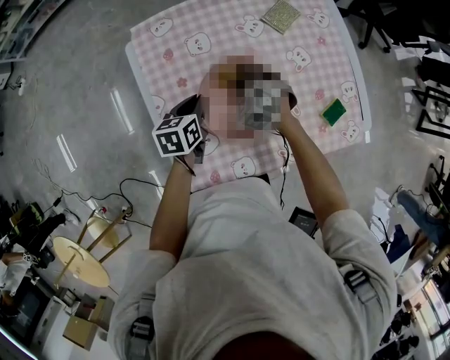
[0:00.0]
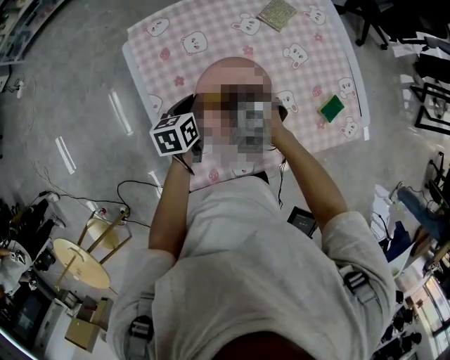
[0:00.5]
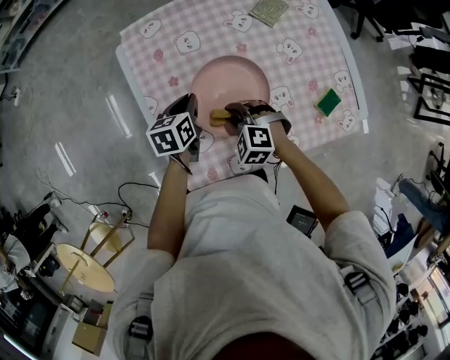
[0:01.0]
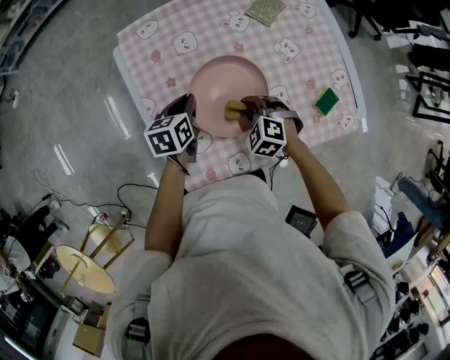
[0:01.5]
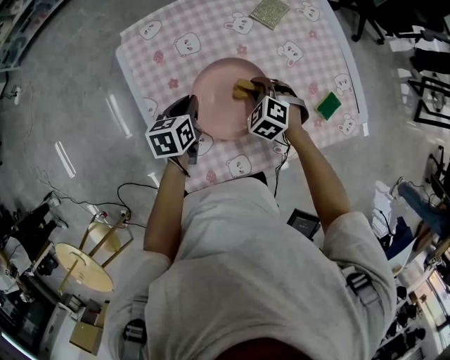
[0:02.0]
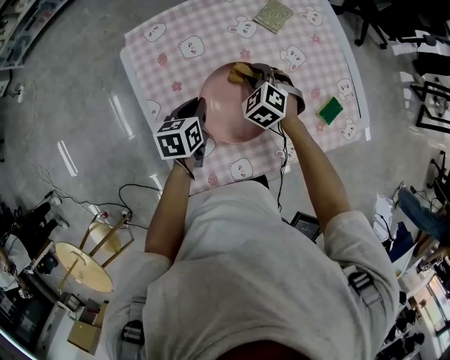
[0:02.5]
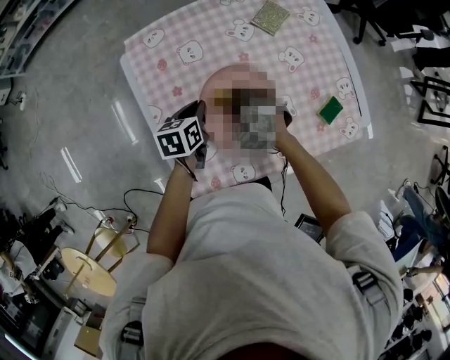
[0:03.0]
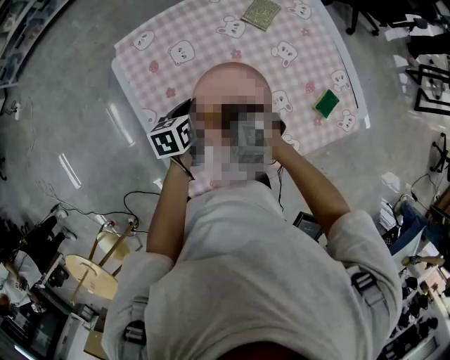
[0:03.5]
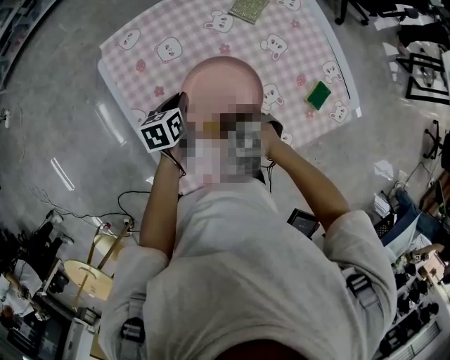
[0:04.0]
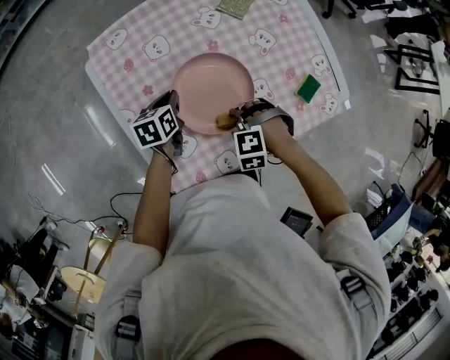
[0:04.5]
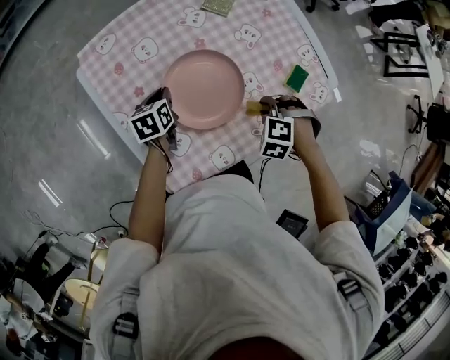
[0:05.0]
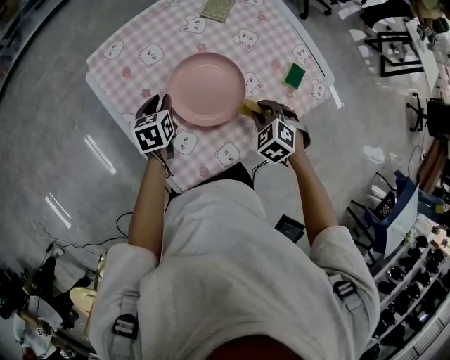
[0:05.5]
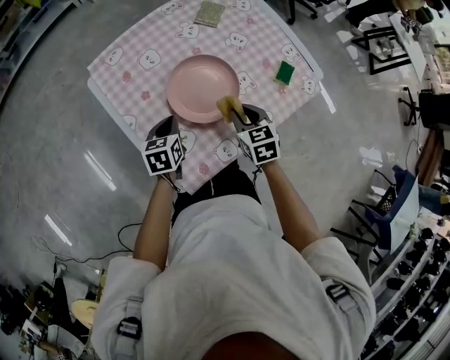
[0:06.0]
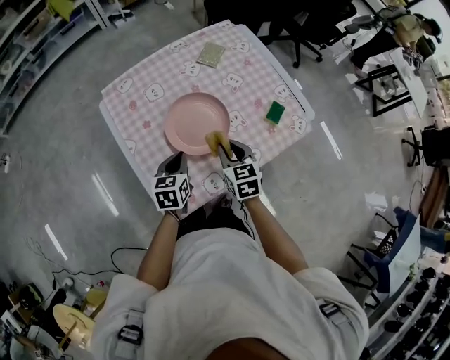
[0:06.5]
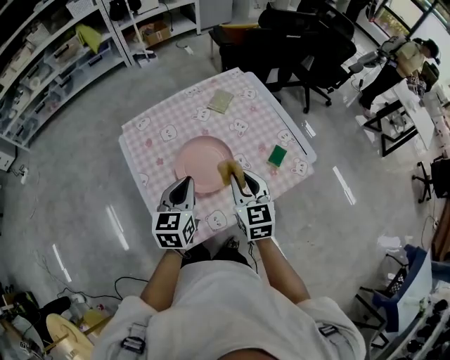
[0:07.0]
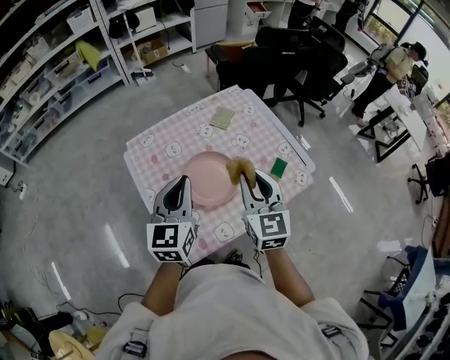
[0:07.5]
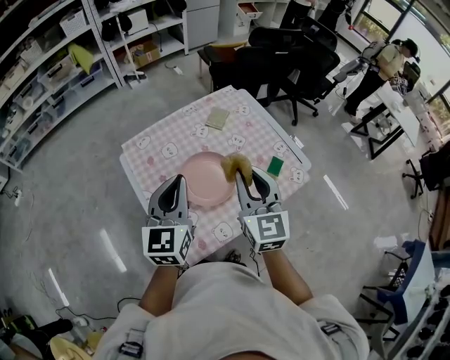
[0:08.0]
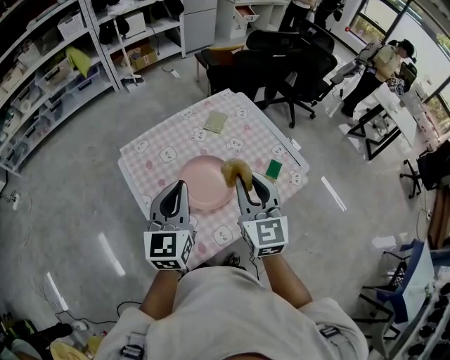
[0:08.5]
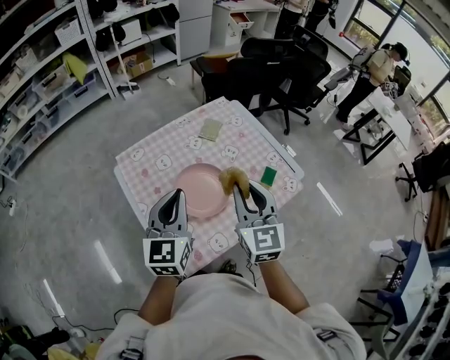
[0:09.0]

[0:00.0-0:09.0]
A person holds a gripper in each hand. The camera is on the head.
0:00.0 to 0:02.0: The right gripper shifts roughly 10 cm to the right and backward.
0:02.0 to 0:04.5: The left gripper ends up some 5 cm from where it was. Meanwhile the right gripper ends up about 10 cm from where it was, and turns by roughly 40 degrees.
0:04.5 to 0:07.0: The grippers both shift upward by some 25 cm. The right gripper tilts its fingers about 60 degrees upward. The left gripper swivels some 40 degrees, and opens, then closes once more.
0:07.0 to 0:09.0: Both grippers move upward, approximately 15 cm.

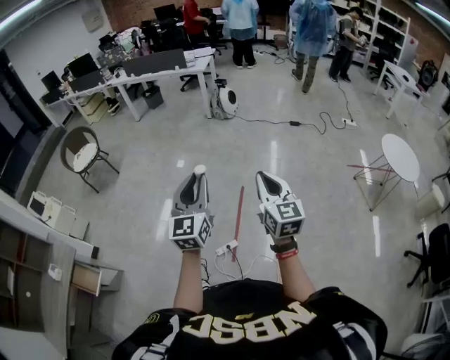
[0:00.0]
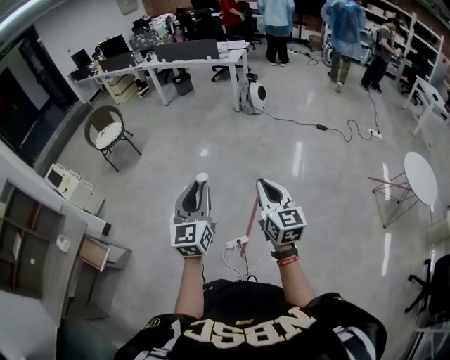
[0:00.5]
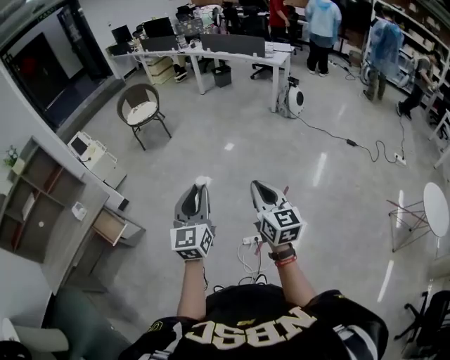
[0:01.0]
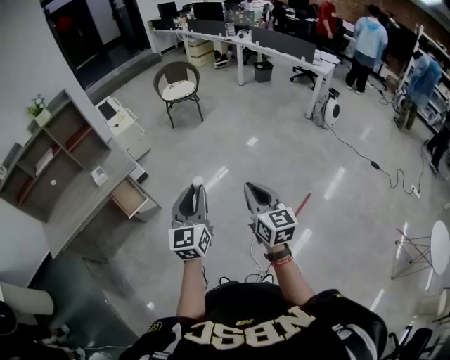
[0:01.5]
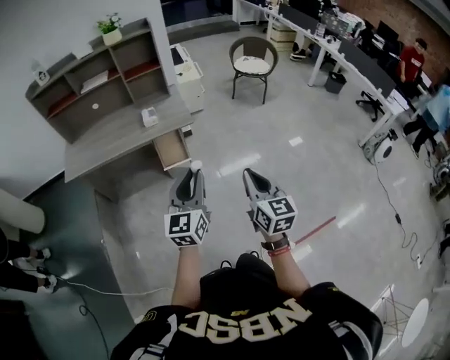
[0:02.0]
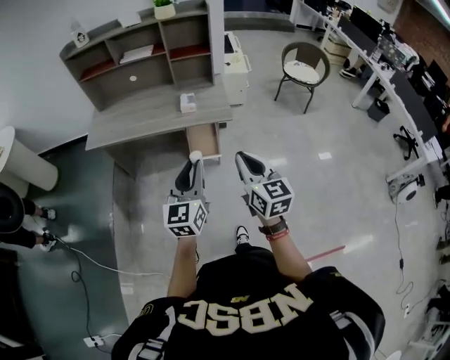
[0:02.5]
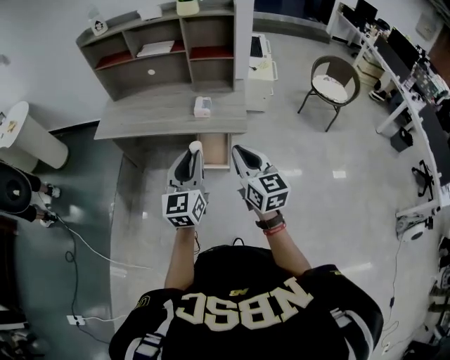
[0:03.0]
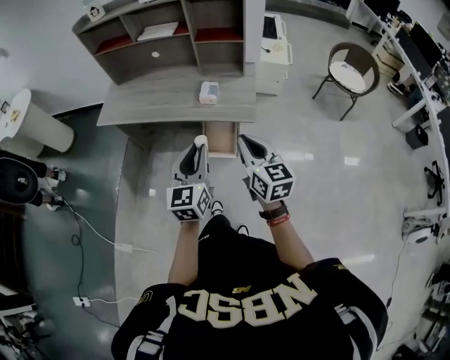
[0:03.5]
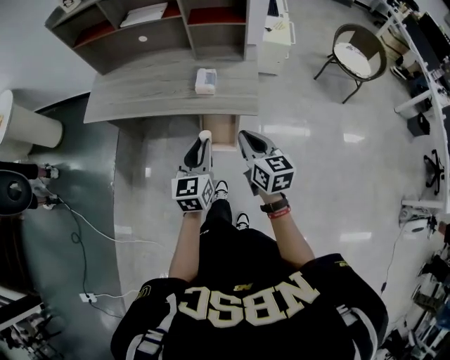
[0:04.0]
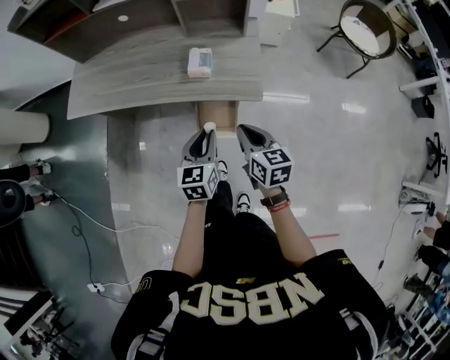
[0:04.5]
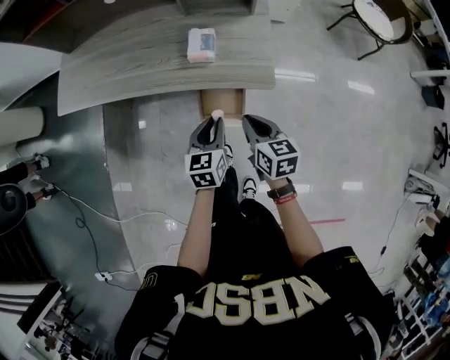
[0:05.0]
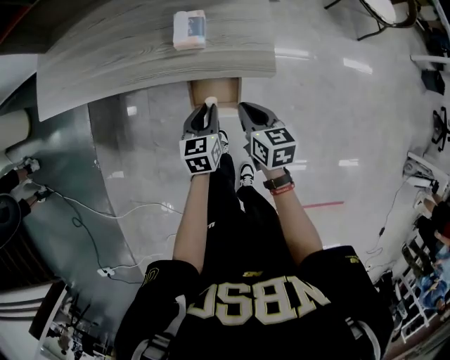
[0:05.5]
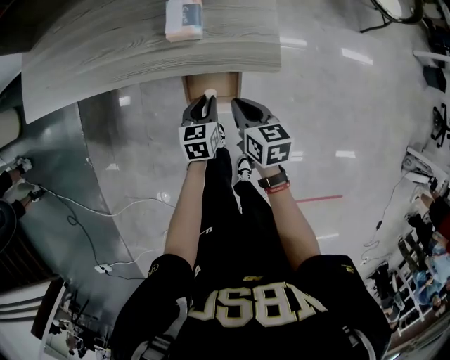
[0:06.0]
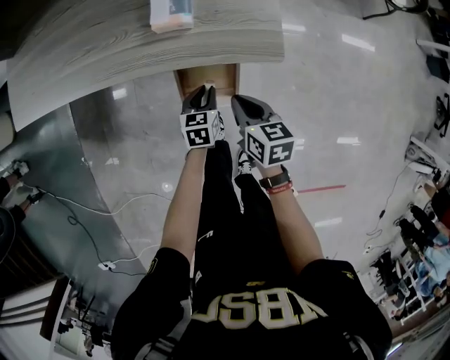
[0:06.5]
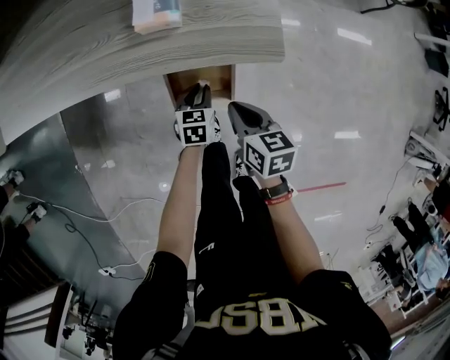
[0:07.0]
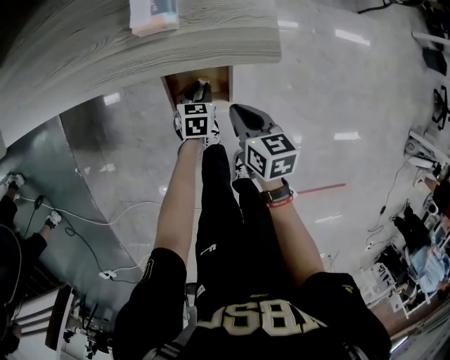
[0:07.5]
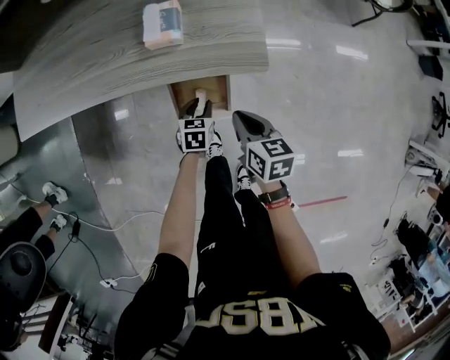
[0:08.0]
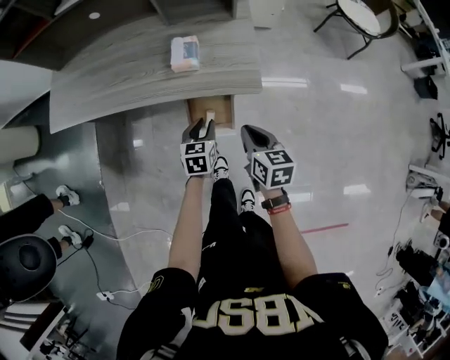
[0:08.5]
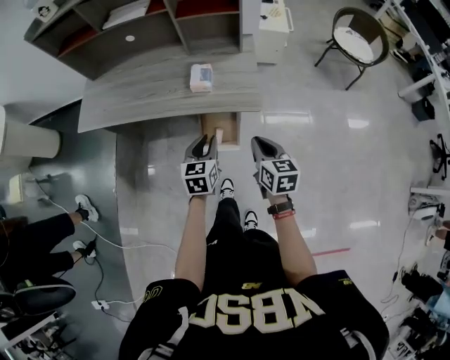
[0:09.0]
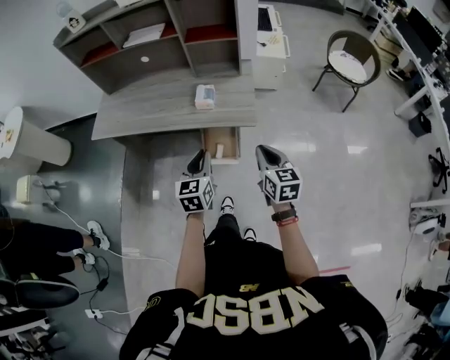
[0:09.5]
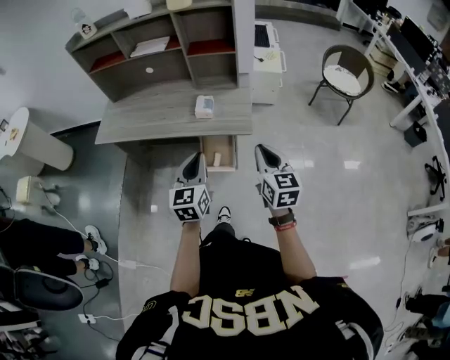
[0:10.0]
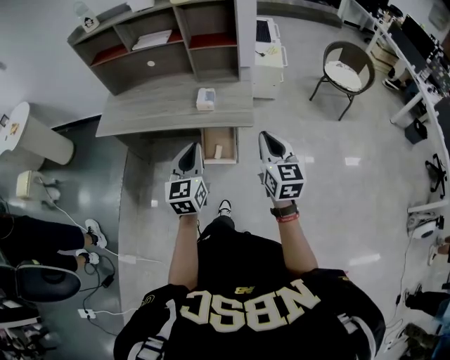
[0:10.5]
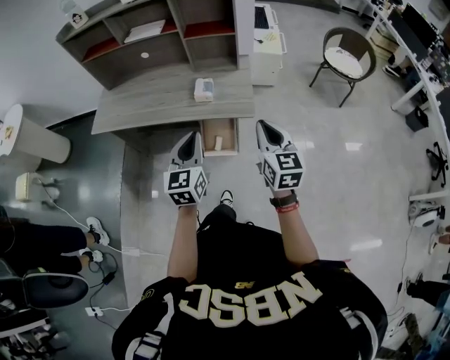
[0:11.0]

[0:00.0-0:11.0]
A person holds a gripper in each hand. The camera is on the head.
0:00.0 to 0:02.0: Both grippers are carried approximately 60 cm. The left gripper swivels some 60 degrees. Meanwhile the right gripper changes its angle by some 60 degrees.
0:02.0 to 0:03.5: The right gripper changes place by about 30 cm, and swivels about 30 degrees; the left gripper shifts by some 25 cm, and changes its angle by about 30 degrees.
0:03.5 to 0:05.5: The two grippers go approximately 35 cm downward and forward. The right gripper swivels approximately 30 degrees, while the left gripper angles its fingers downward, by about 30 degrees.
0:05.5 to 0:07.5: The left gripper heads downward, covering about 20 cm, and changes its angle by about 20 degrees; the right gripper heads downward, covering some 10 cm.
0:07.5 to 0:09.0: The left gripper moves upward, about 35 cm, and swivels roughly 30 degrees; the right gripper is displaced upward by roughly 20 cm.
0:09.0 to 0:11.0: Both grippers move upward, roughly 20 cm. The left gripper changes its angle by roughly 20 degrees, and closes its fingers. Meanwhile the right gripper turns by some 20 degrees.

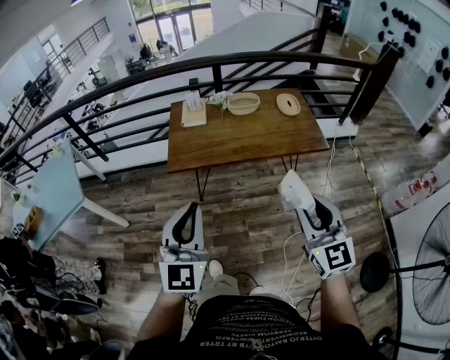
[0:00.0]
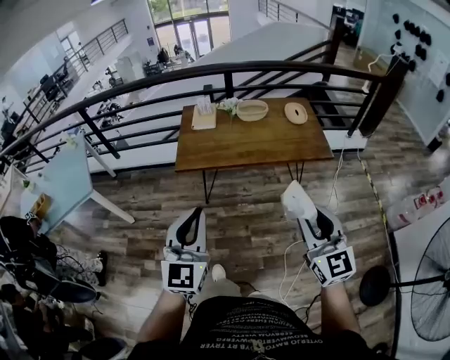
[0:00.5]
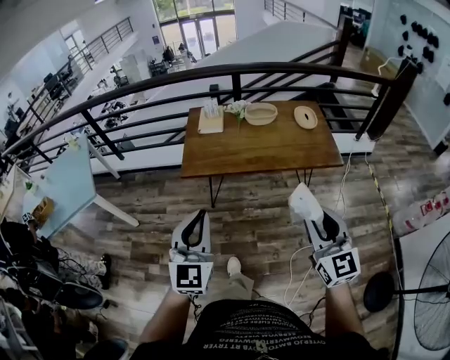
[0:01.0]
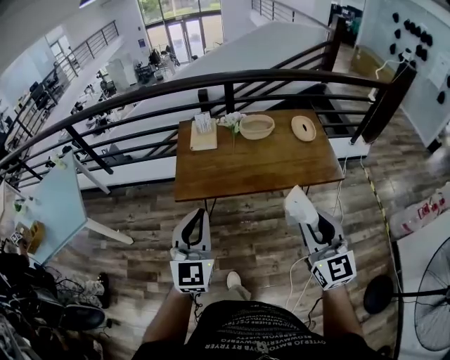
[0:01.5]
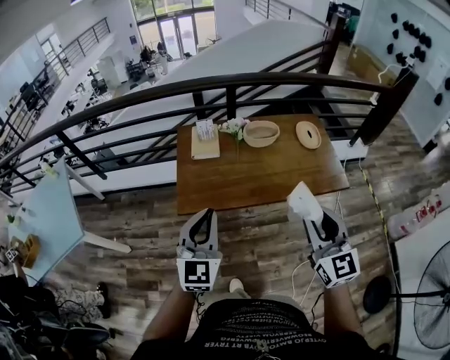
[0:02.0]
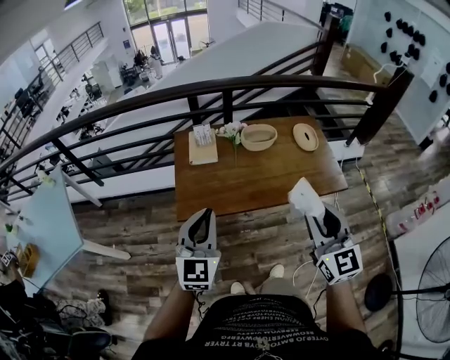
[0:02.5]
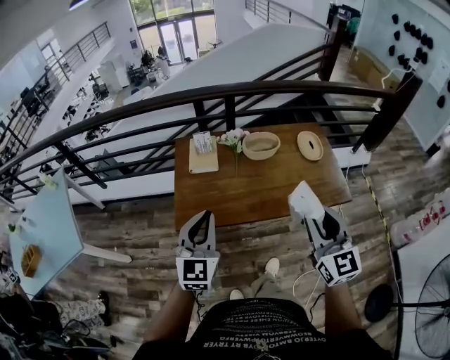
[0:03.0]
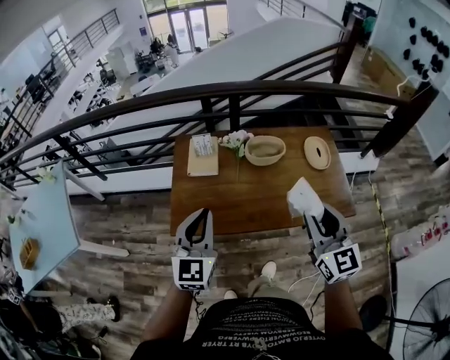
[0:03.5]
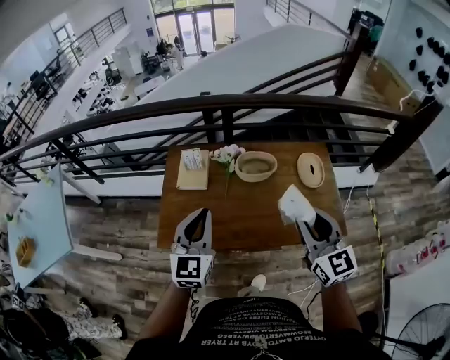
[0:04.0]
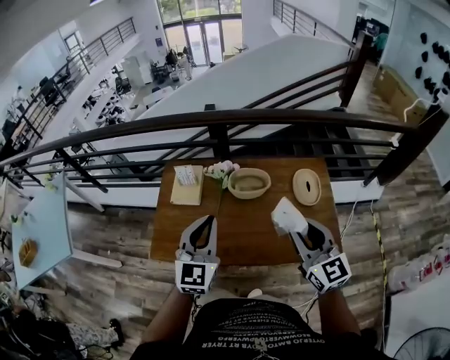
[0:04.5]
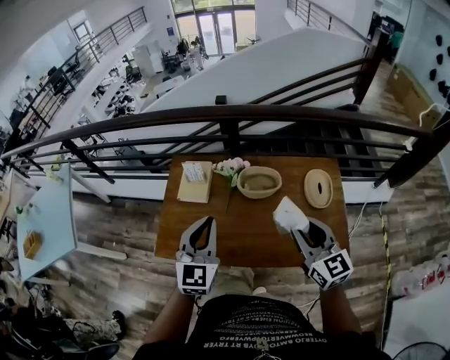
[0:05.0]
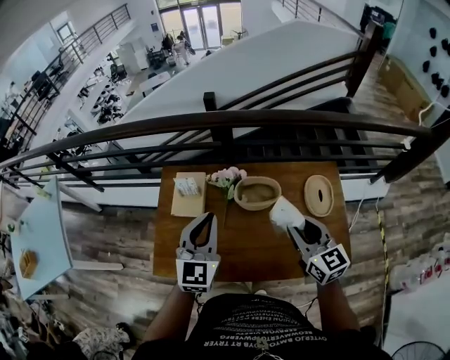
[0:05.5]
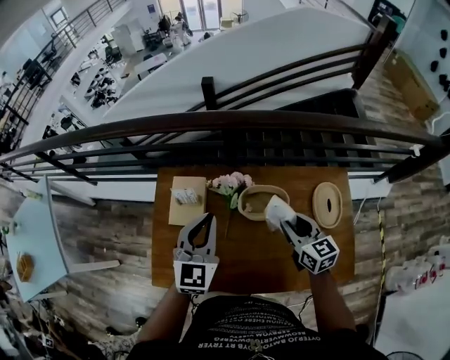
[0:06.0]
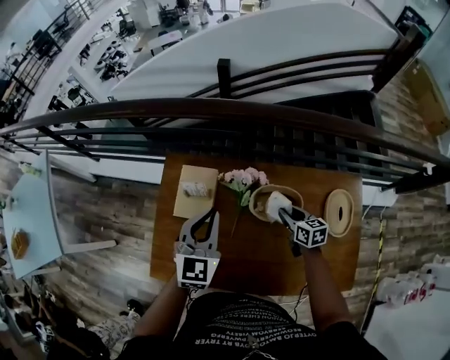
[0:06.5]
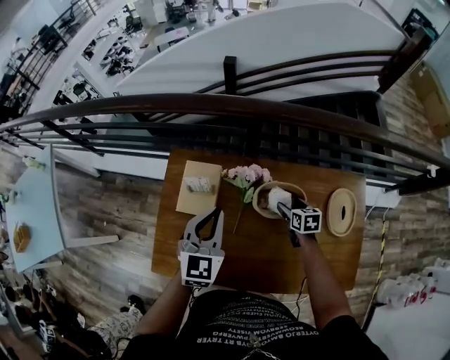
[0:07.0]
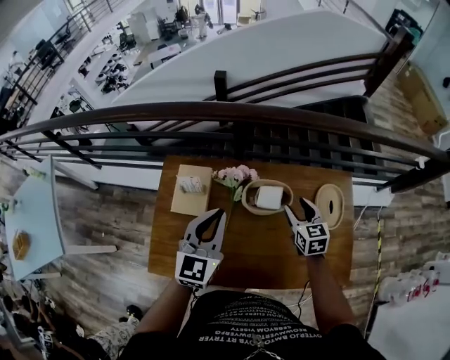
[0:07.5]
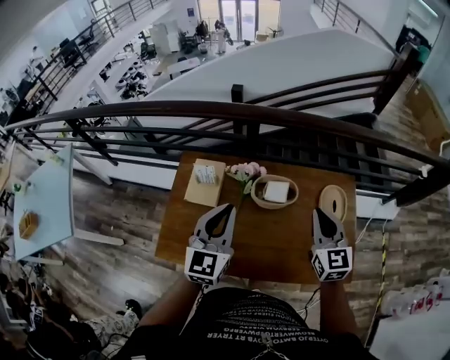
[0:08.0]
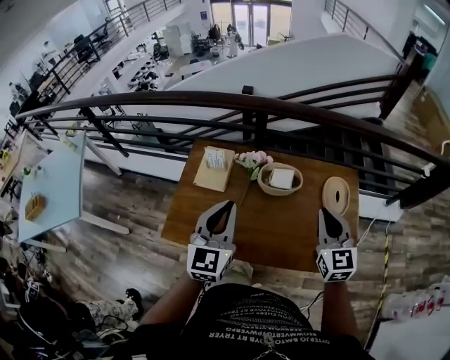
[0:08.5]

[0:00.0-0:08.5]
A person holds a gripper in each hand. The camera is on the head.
0:00.0 to 0:02.0: The grippers both shift forward by about 20 cm.
0:02.0 to 0:04.0: The grippers both shift forward and to the right by roughly 25 cm.
0:04.0 to 0:06.5: The right gripper shifts approximately 50 cm downward and forward, and angles its fingers downward, by approximately 30 degrees. The left gripper moves forward, approximately 25 cm.
0:06.5 to 0:08.5: The left gripper moves backward and upward, roughly 25 cm, while the right gripper goes about 35 cm upward and backward, swivels some 40 degrees, and opens, then closes once more.
